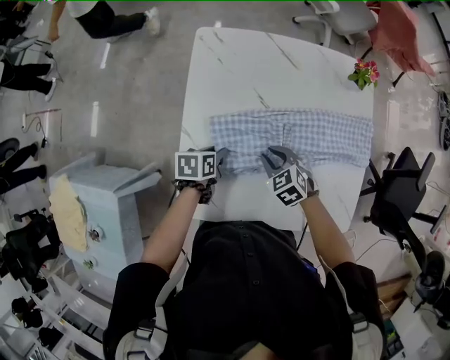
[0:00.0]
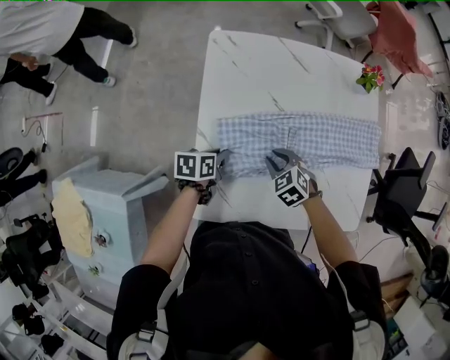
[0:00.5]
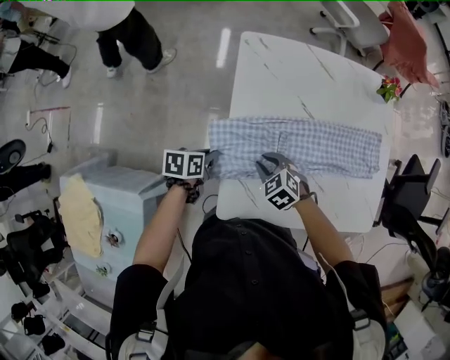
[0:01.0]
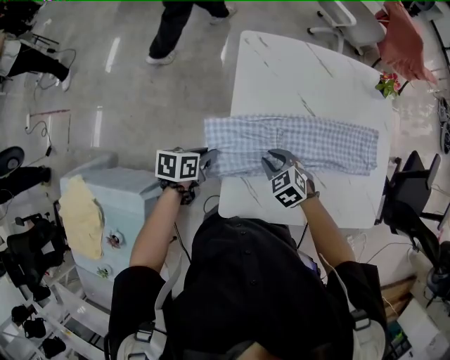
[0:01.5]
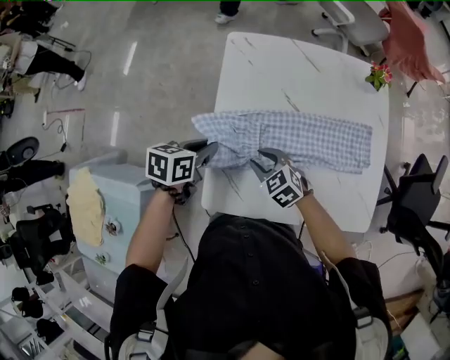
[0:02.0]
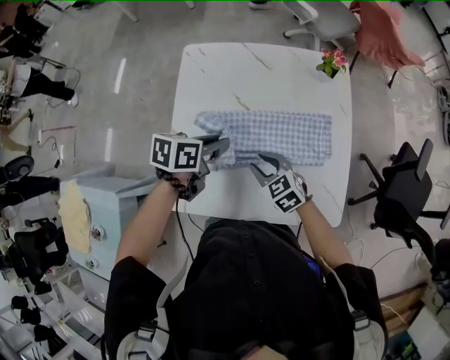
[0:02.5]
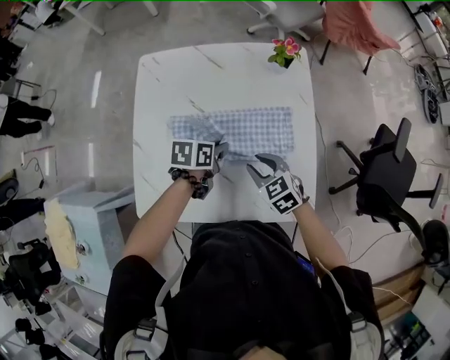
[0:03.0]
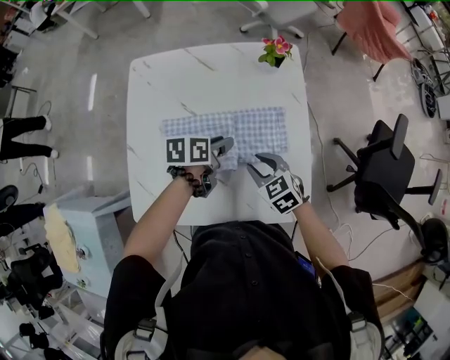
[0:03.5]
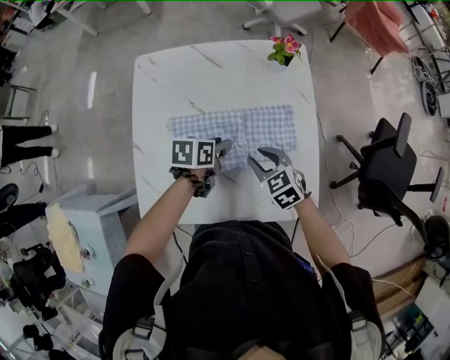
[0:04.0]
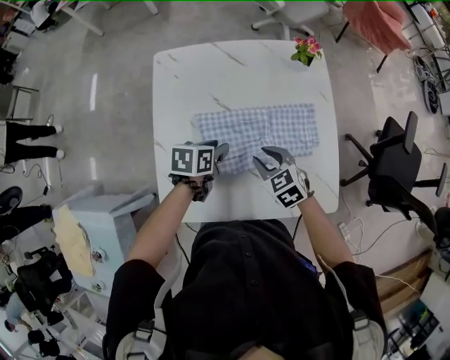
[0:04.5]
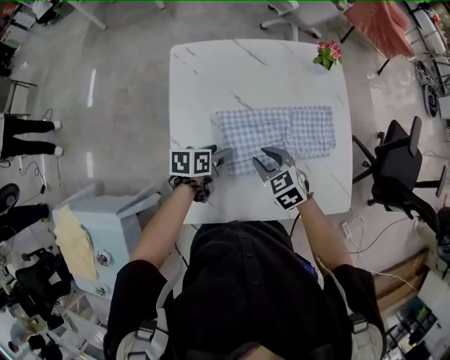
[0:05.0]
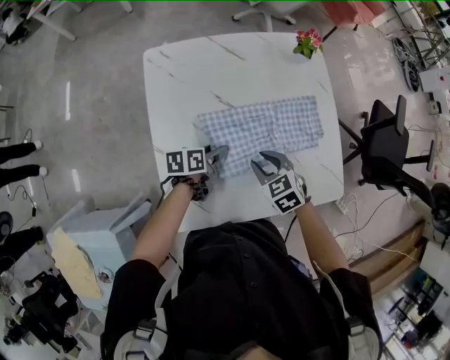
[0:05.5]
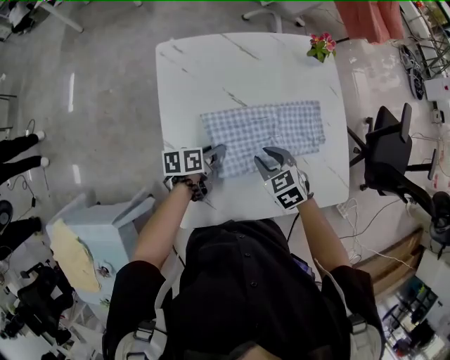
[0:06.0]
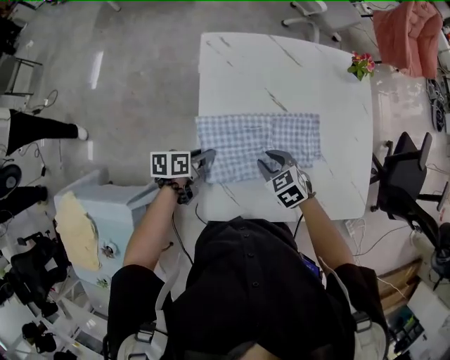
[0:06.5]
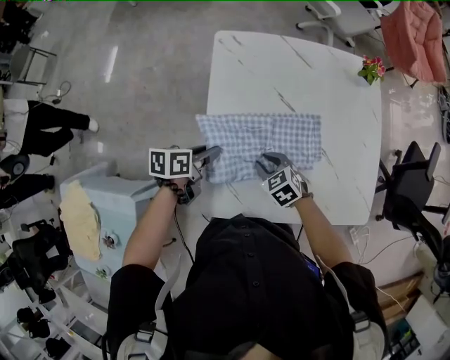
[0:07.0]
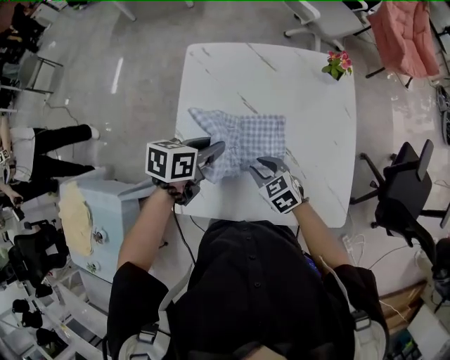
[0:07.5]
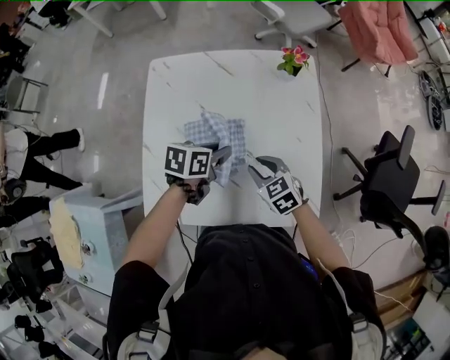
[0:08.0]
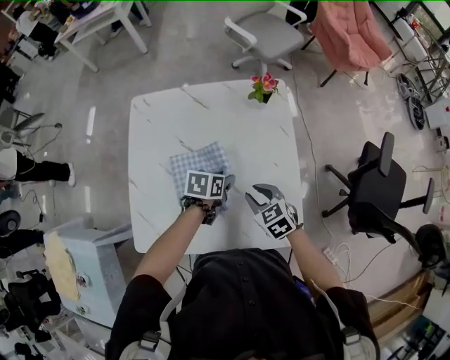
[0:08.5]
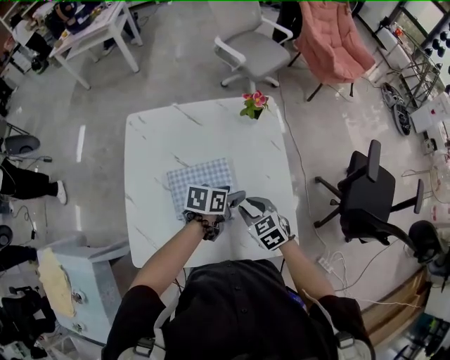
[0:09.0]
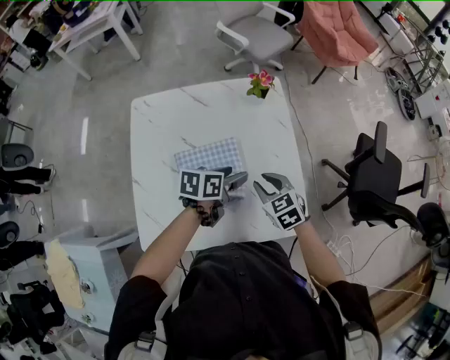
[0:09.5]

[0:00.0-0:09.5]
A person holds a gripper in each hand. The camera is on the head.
0:00.0 to 0:02.0: The left gripper shifts about 15 cm upward and to the left. The right gripper goes approximately 15 cm to the left and backward.
0:02.0 to 0:04.0: Both grippers travel together to the right, some 30 cm.
0:04.0 to 0:05.5: The left gripper is displaced to the left and downward by some 15 cm. The right gripper is displaced to the left by roughly 10 cm.
0:05.5 to 0:07.5: The right gripper moves about 15 cm to the left and comes back. Meanwhile the left gripper shifts roughly 15 cm upward, and reaches approximately 15 cm to the left, then returns.
0:07.5 to 0:09.5: Both grippers travel together to the right, roughly 20 cm.

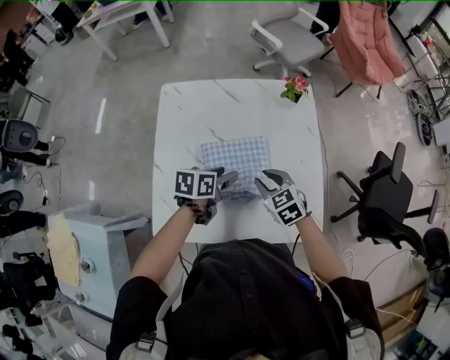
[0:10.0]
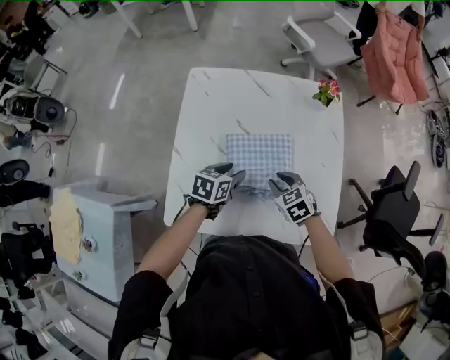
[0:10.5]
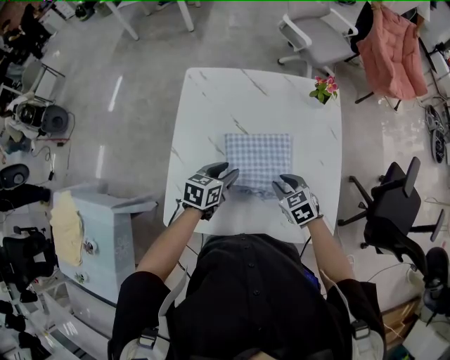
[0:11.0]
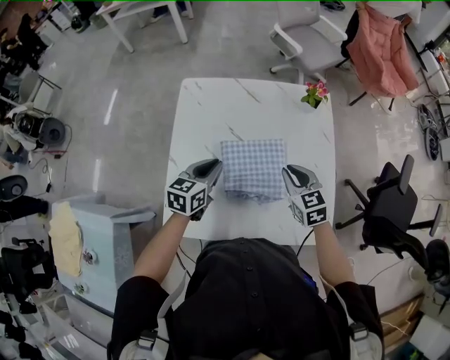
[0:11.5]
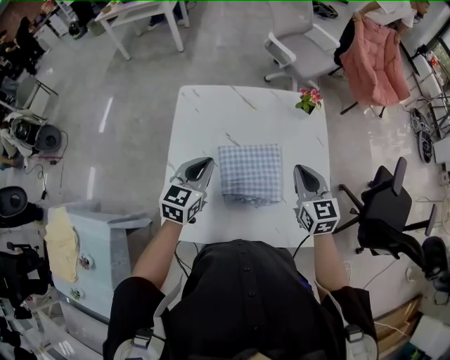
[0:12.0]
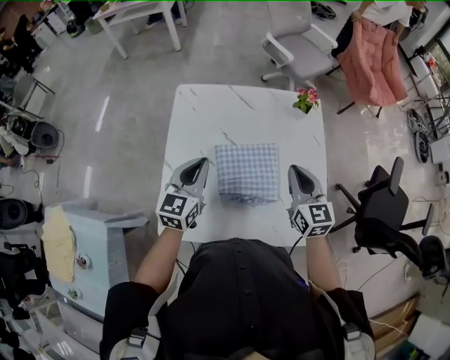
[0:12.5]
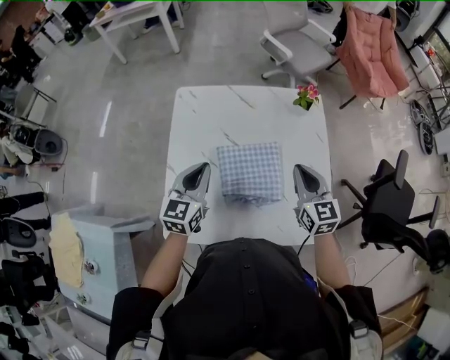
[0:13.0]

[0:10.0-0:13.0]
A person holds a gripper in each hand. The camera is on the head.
0:10.0 to 0:11.5: The right gripper shifts by some 5 cm. The left gripper is displaced to the left by approximately 10 cm, swivels some 30 degrees, and closes its fingers.
0:11.5 to 0:13.0: Both grippers move upward, approximately 5 cm. The right gripper turns by about 20 degrees; the left gripper swivels approximately 20 degrees.

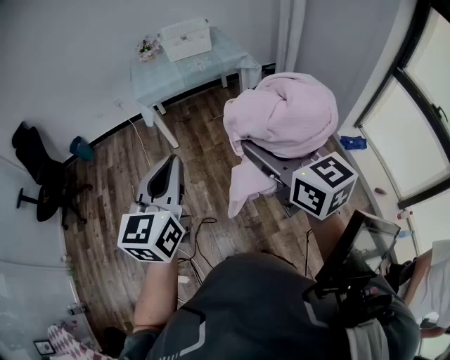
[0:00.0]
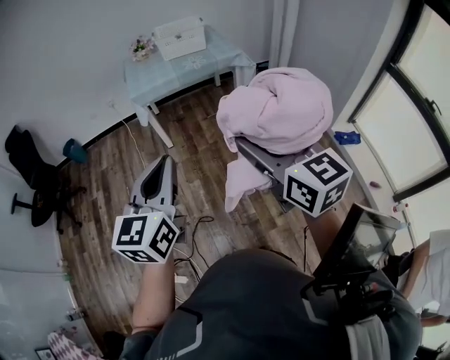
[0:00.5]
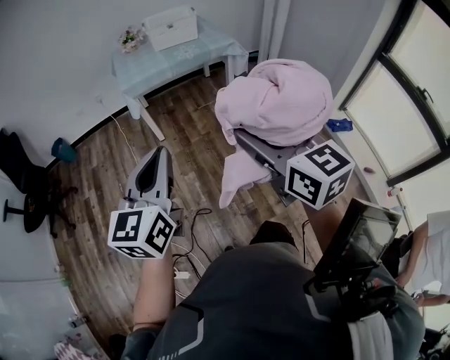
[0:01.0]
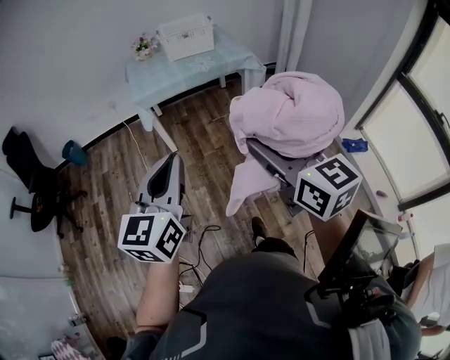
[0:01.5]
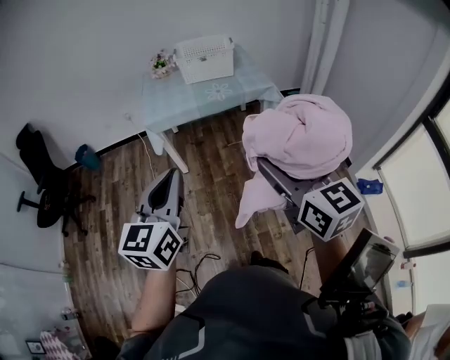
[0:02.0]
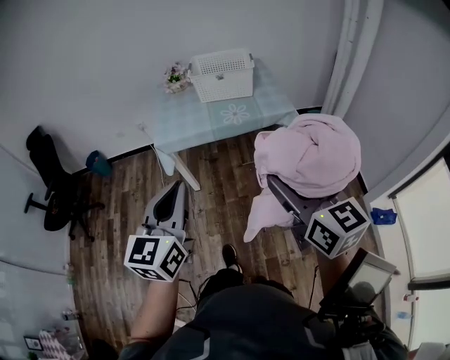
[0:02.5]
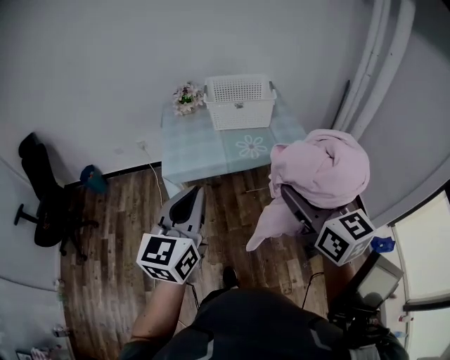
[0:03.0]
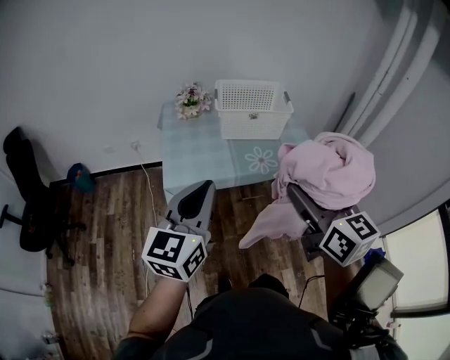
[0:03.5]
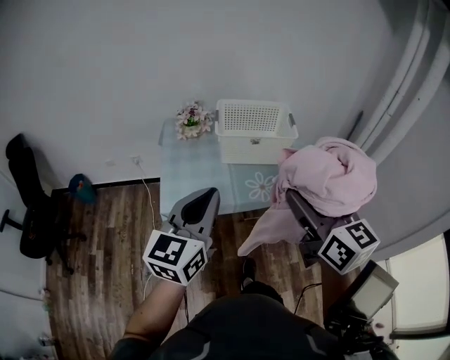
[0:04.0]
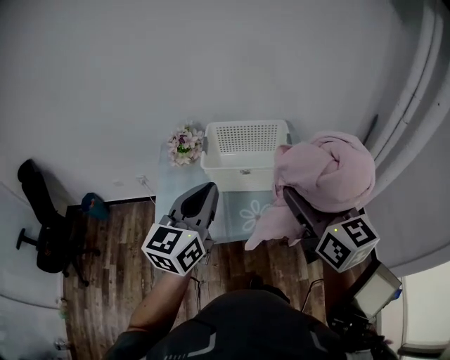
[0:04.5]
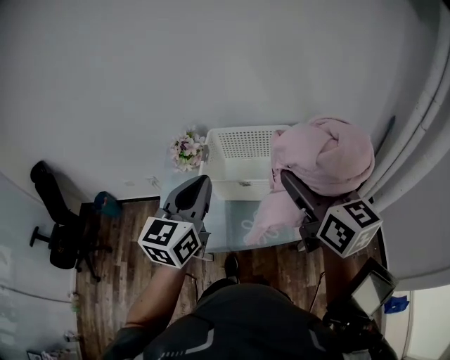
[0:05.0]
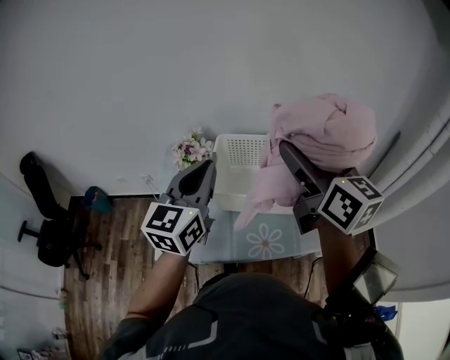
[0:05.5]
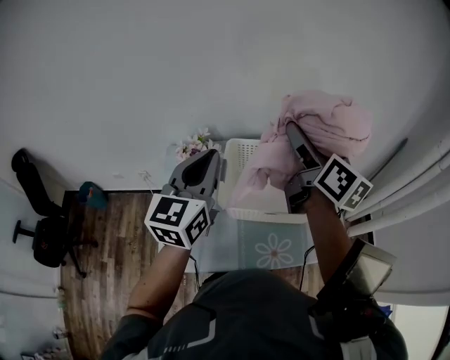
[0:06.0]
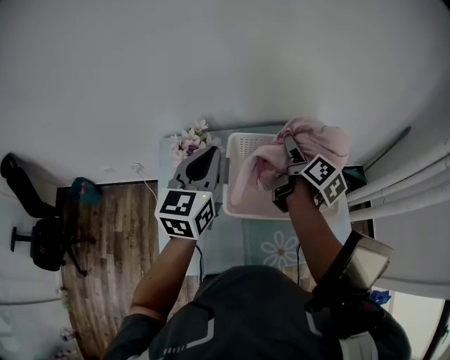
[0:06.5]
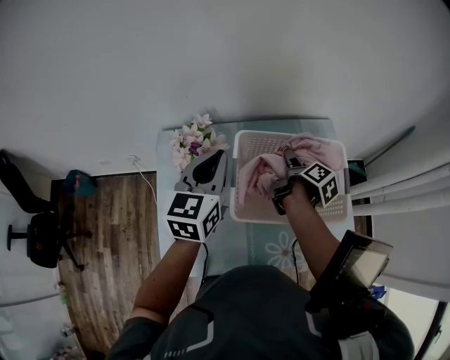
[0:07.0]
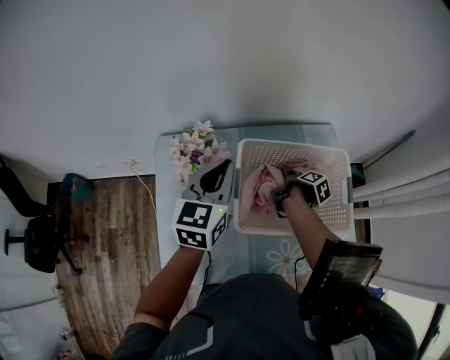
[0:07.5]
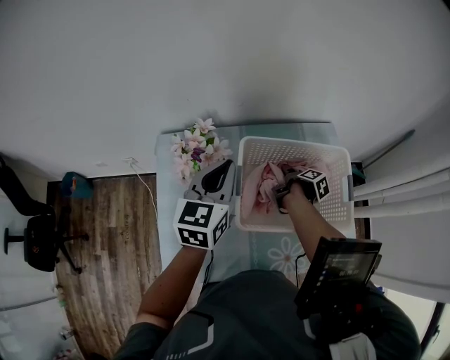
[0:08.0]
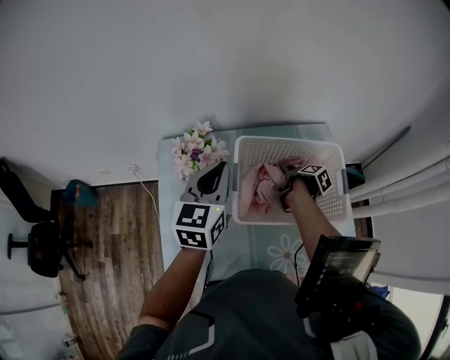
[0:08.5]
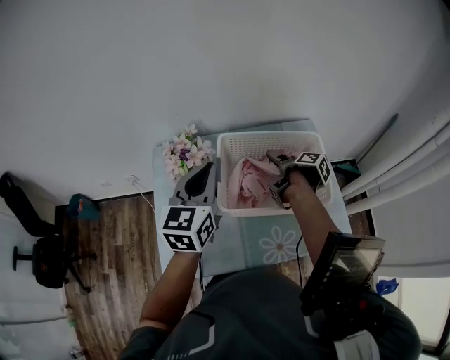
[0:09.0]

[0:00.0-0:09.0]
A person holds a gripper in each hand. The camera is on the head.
0:00.0 to 0:02.0: Both grippers travel together forward, some 25 cm.
0:02.0 to 0:04.5: The two grippers travel together, forward, some 60 cm.
0:04.5 to 0:07.0: The left gripper moves forward, about 30 cm. The right gripper moves forward and downward, some 50 cm, and twists about 70 degrees clockwise, seen from behind.
0:07.0 to 0:09.0: The right gripper reaches about 10 cm downward, then returns, while the left gripper travels backward by some 5 cm.

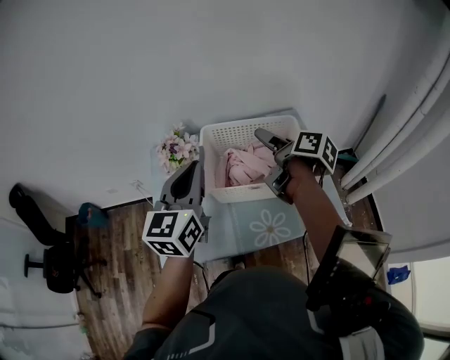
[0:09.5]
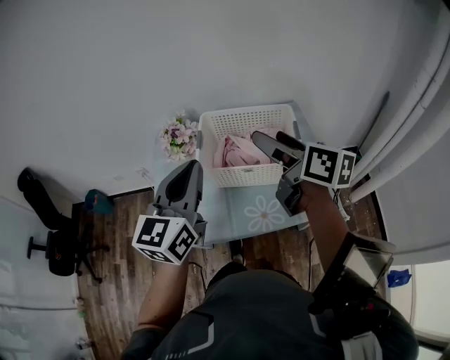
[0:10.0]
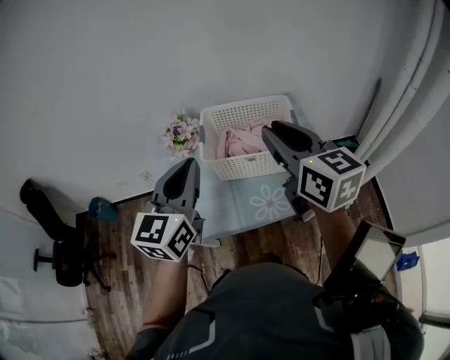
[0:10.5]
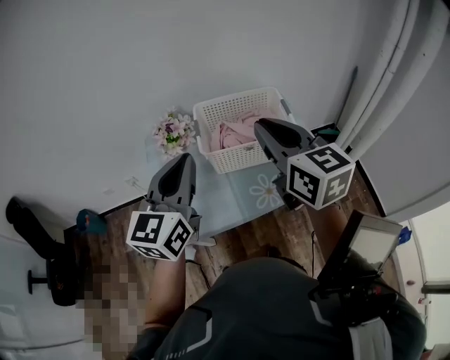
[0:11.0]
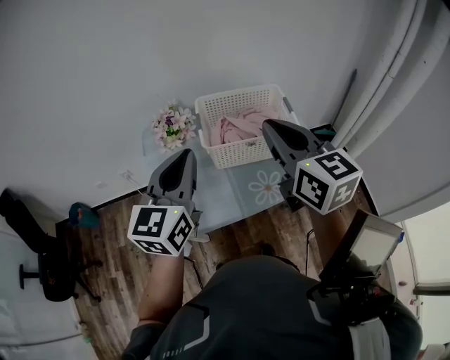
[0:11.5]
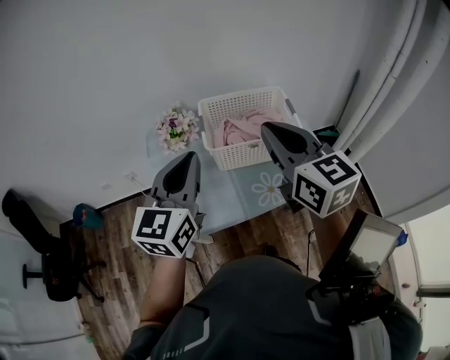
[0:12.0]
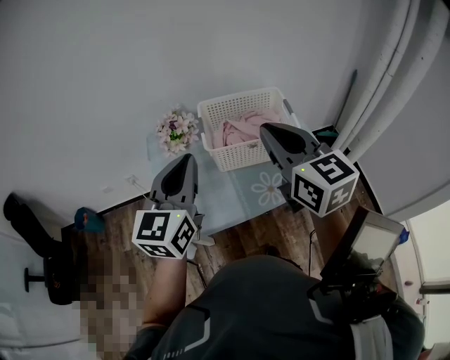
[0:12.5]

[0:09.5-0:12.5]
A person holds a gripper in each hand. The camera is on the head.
0:09.5 to 0:11.0: The right gripper shifts about 25 cm backward and upward, rolls counterclockwise, seen from behind, by some 60 degrees, and closes its fingers. Meanwhile the left gripper travels backward by about 15 cm.
0:11.0 to 0:12.5: The grippers make only small movements.

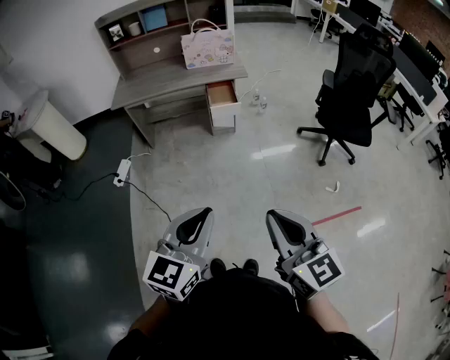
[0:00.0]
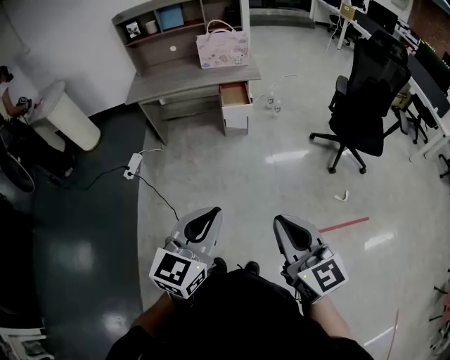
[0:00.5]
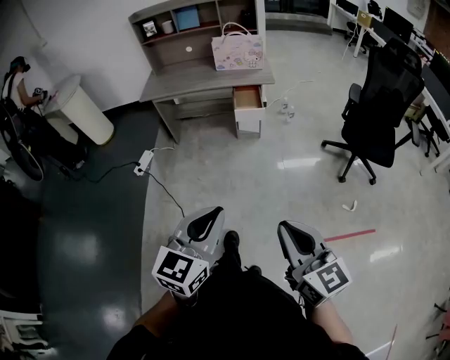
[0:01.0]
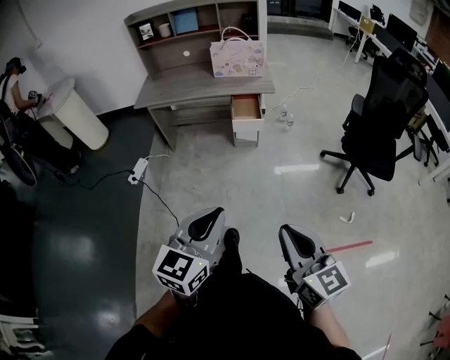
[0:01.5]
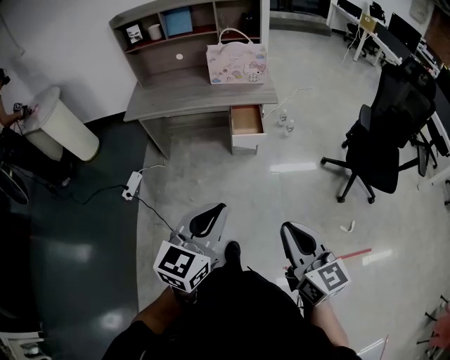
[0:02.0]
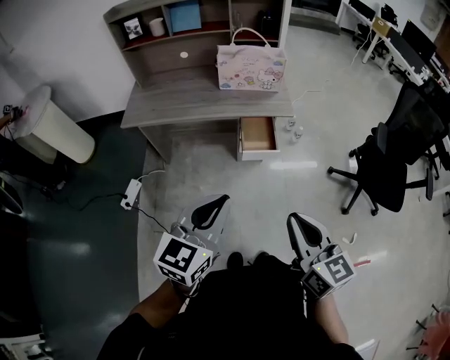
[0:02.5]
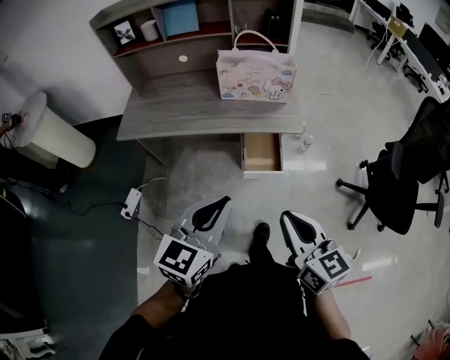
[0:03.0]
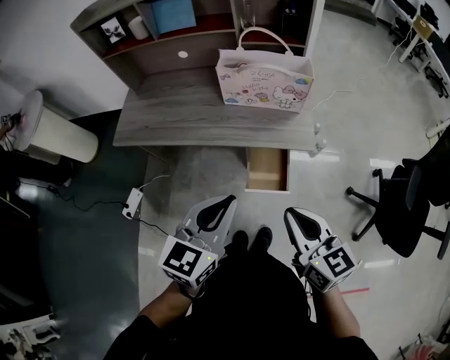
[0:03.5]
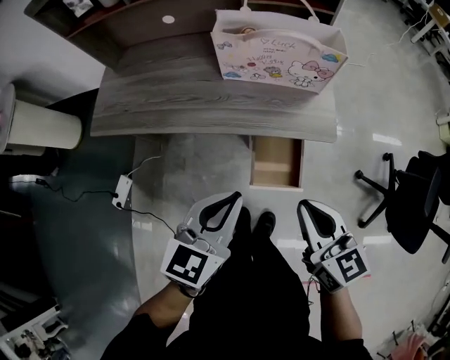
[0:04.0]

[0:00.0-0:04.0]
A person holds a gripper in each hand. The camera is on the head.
0:00.0 to 0:02.0: The two grippers go roughly 25 cm forward.
0:02.0 to 0:04.0: The two grippers travel together, forward, about 50 cm.
